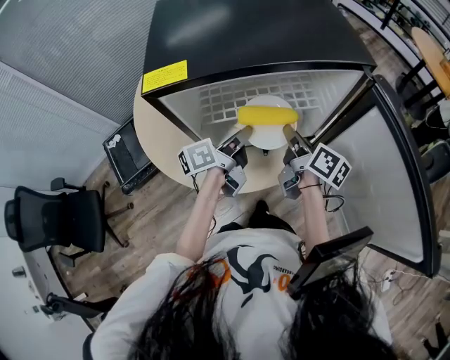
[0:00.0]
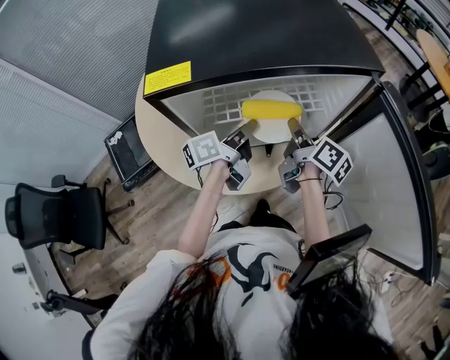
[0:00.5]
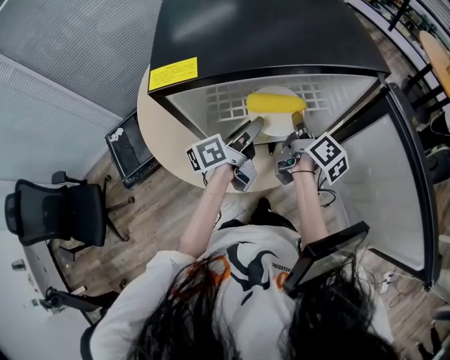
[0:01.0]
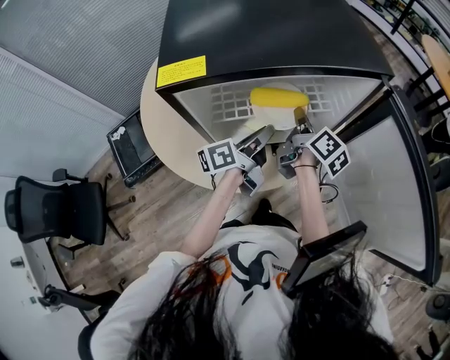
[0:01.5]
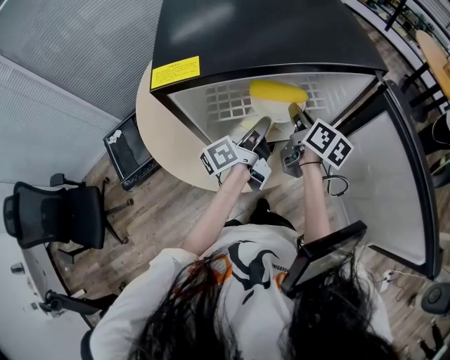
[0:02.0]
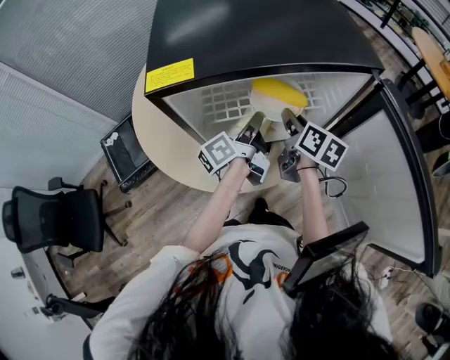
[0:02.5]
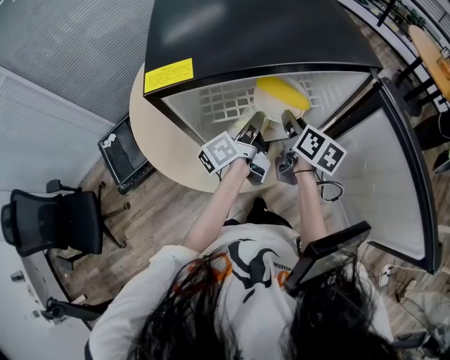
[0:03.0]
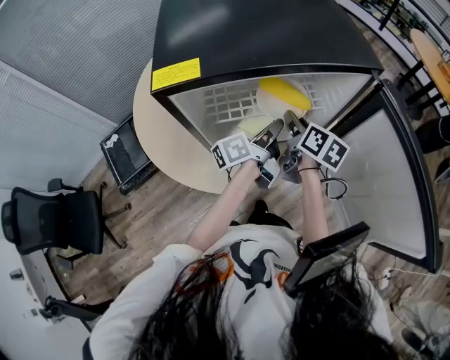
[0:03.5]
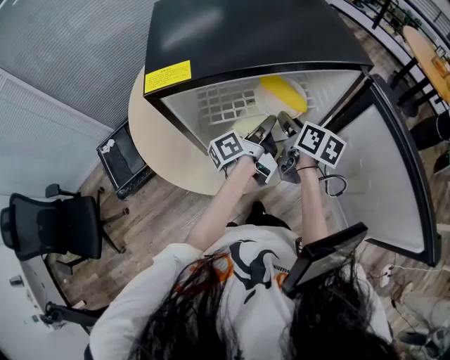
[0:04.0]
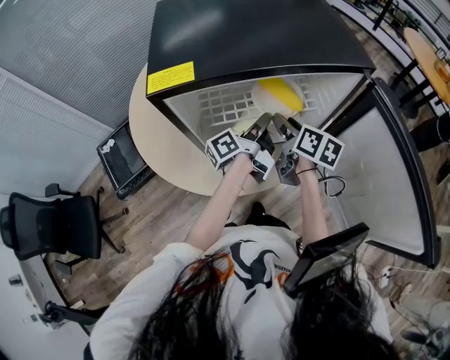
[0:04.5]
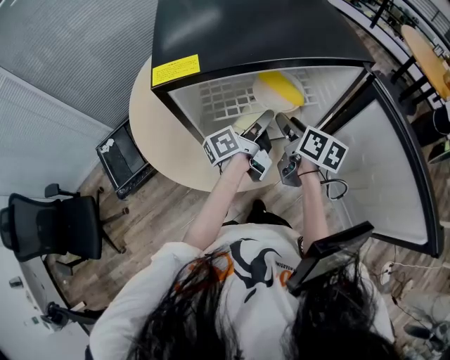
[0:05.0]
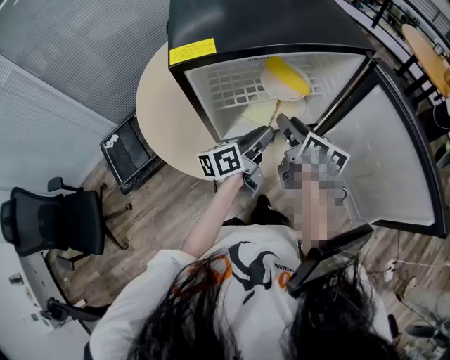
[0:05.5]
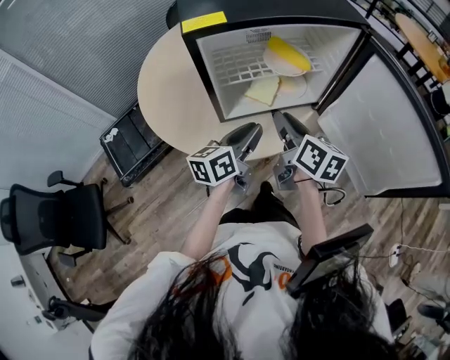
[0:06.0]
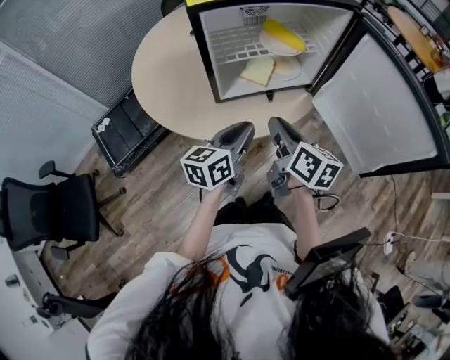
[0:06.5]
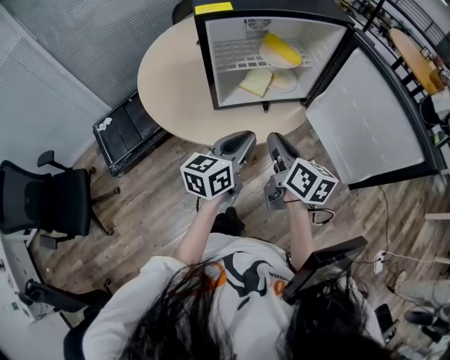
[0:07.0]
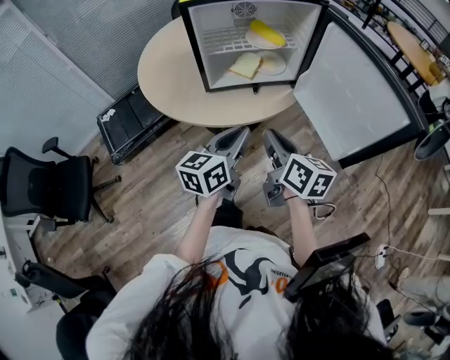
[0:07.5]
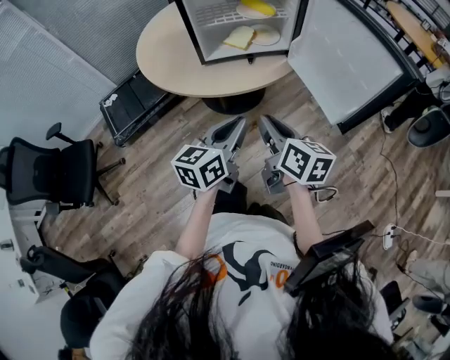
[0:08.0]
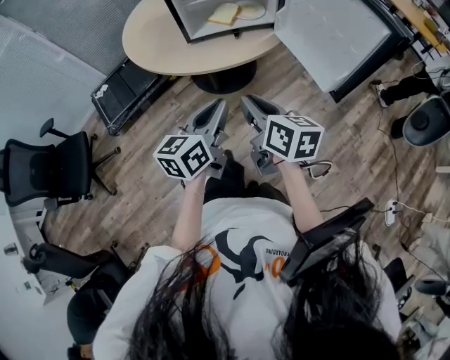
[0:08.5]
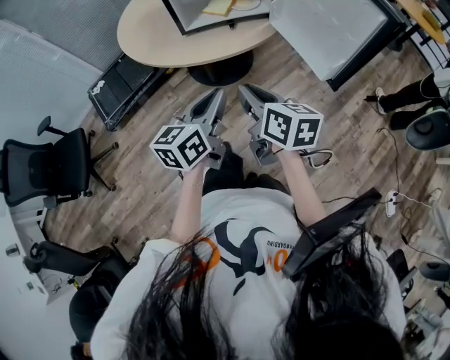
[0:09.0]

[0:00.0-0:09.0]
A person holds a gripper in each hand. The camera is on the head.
0:00.0 to 0:02.0: The left gripper opens, then closes again, while the right gripper goes about 5 cm forward.
0:02.0 to 0:04.5: The right gripper opens.
0:04.5 to 0:07.0: Both grippers travel together backward, about 25 cm. The left gripper rotates around the line of its fingers by roughly 50 degrees, clockwise from behind, while the right gripper closes.
0:07.0 to 0:09.0: Both grippers move backward, approximately 20 cm.

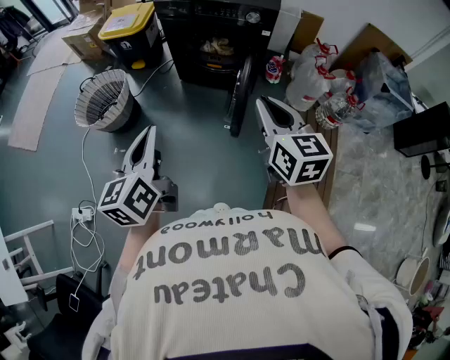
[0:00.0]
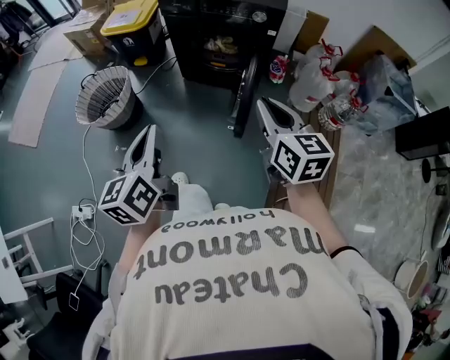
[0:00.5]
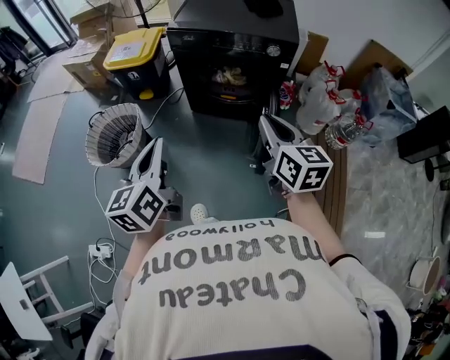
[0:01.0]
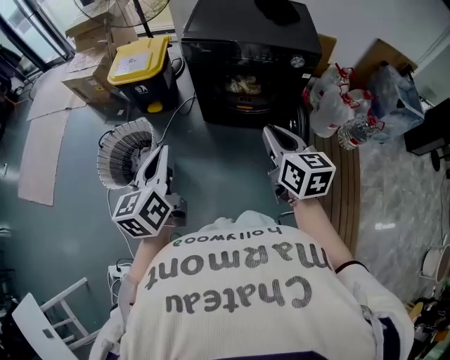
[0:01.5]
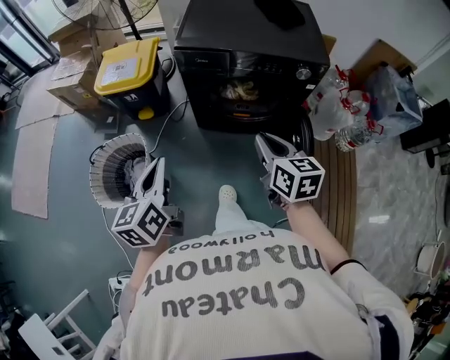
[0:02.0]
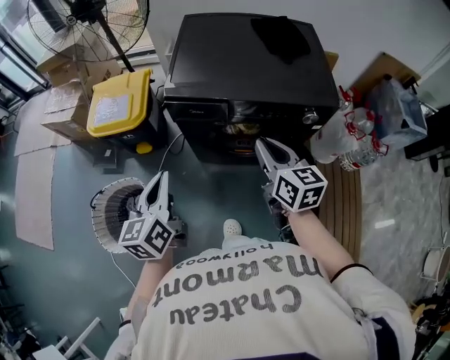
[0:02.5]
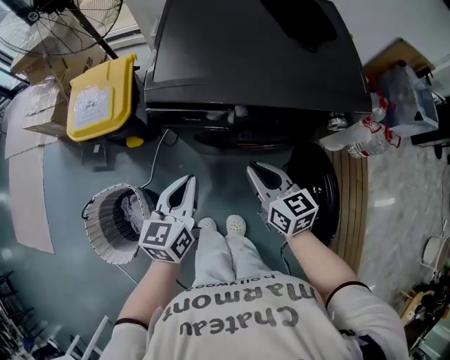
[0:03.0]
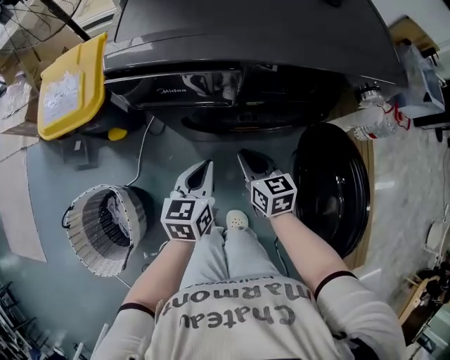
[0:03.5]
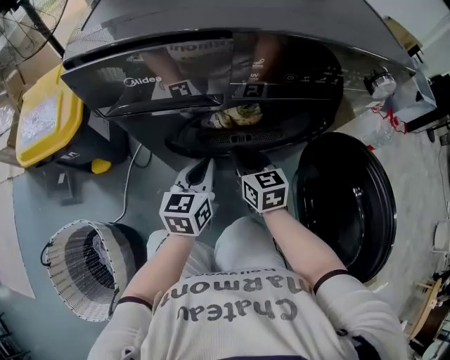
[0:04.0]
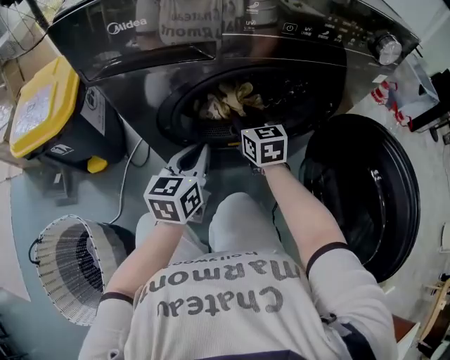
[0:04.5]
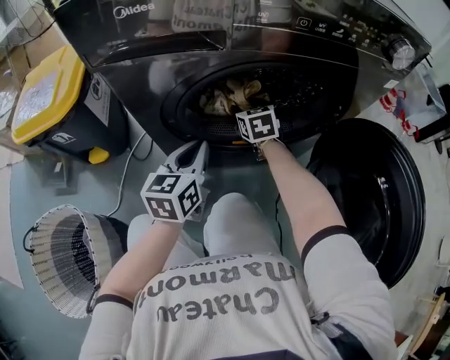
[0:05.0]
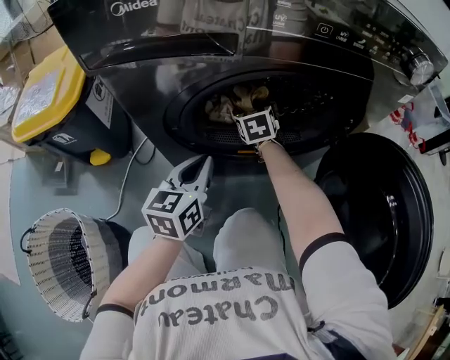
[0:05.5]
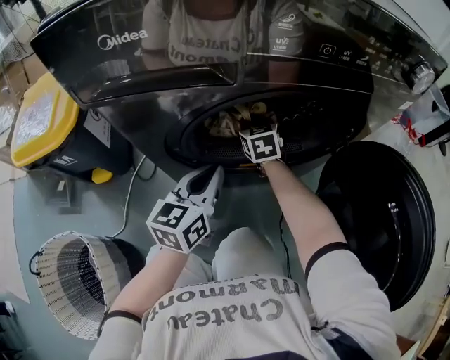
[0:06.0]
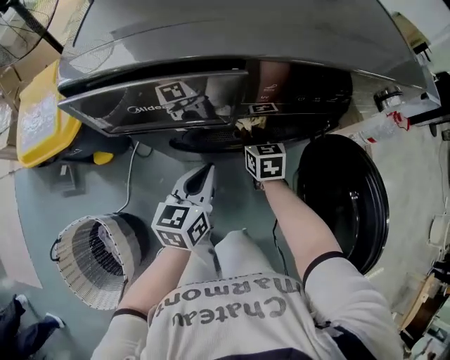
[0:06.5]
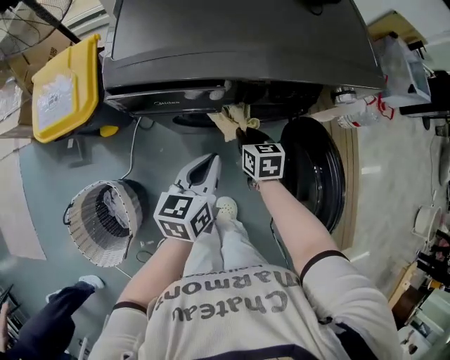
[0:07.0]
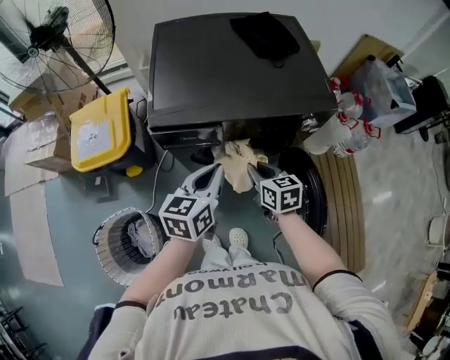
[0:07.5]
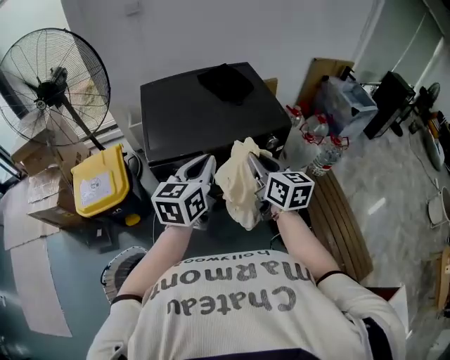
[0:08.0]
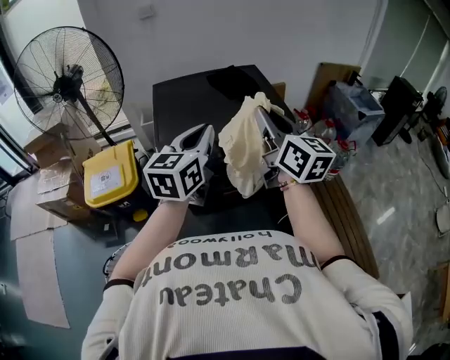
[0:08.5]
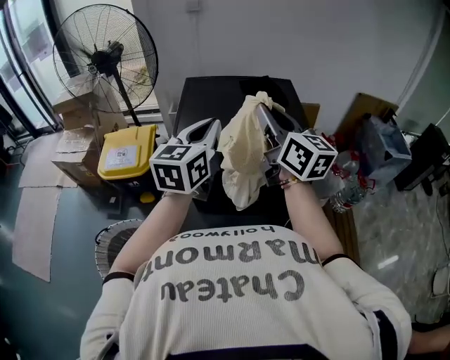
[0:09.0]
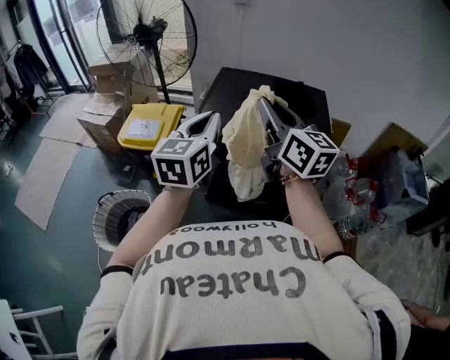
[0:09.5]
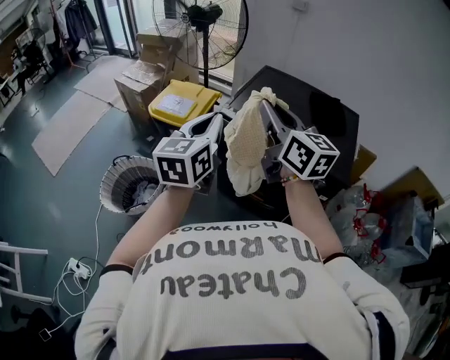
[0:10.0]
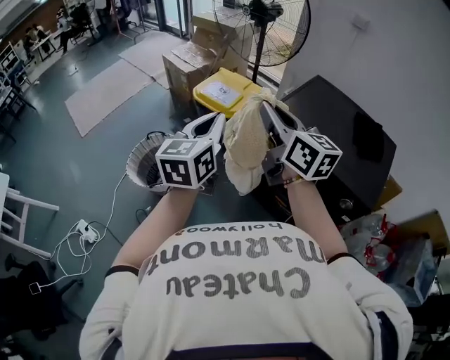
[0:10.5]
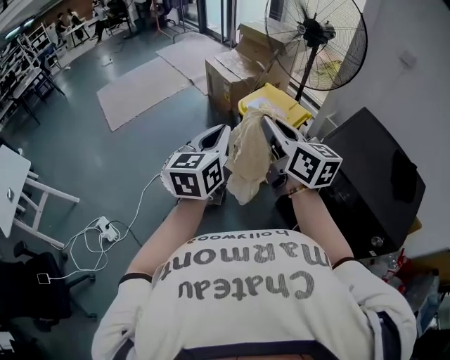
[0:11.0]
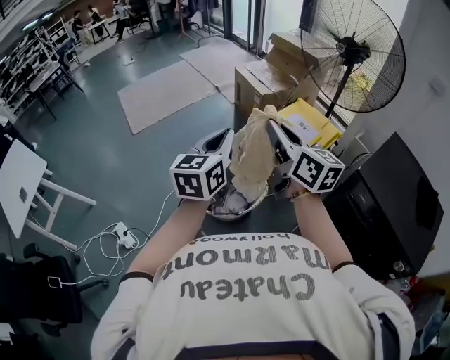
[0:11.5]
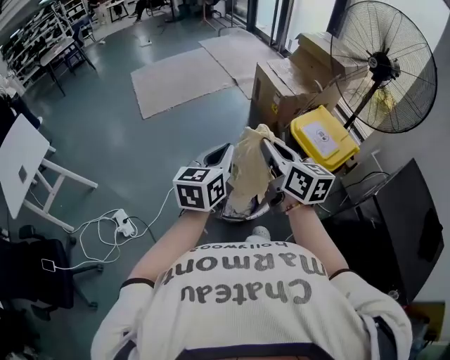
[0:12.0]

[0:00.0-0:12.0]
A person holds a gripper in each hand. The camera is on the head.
0:00.0 to 0:02.0: Both grippers move forward and to the left, some 40 cm.
0:02.0 to 0:04.0: The two grippers go about 50 cm downward and forward. The left gripper changes its angle by some 30 degrees.
0:04.0 to 0:06.0: The right gripper is displaced forward and downward by some 20 cm, and opens, then closes again.
0:06.0 to 0:08.0: The right gripper is displaced upward and backward by about 70 cm, and changes its angle by approximately 40 degrees, while the left gripper is displaced upward by about 50 cm.
0:08.0 to 0:10.0: The left gripper shifts by some 15 cm, and rotates roughly 50 degrees. The right gripper shifts about 15 cm upward, and swivels some 50 degrees.
0:10.0 to 0:12.0: The pair of grippers is taken some 60 cm. The right gripper turns by roughly 40 degrees; the left gripper changes its angle by some 40 degrees.

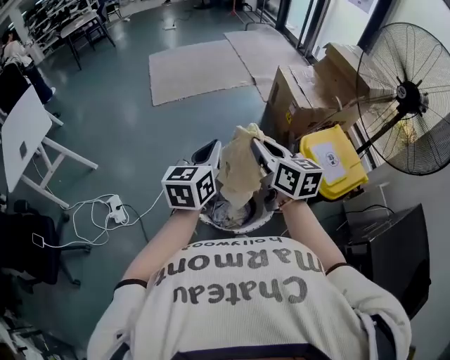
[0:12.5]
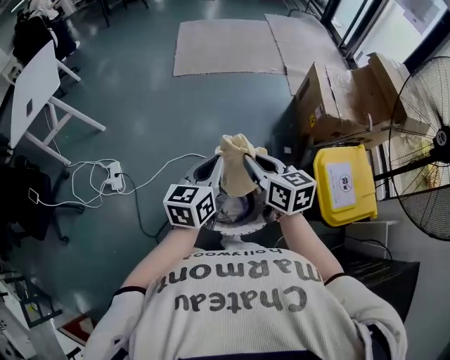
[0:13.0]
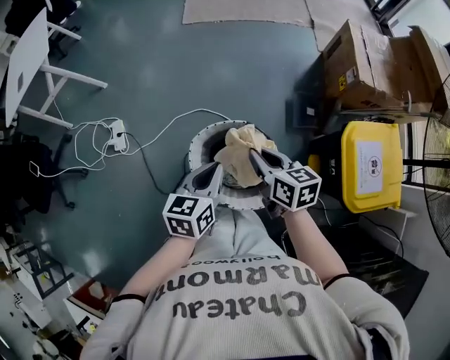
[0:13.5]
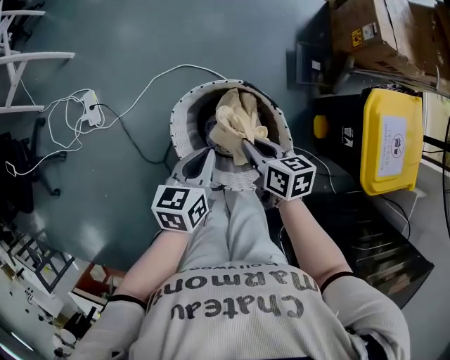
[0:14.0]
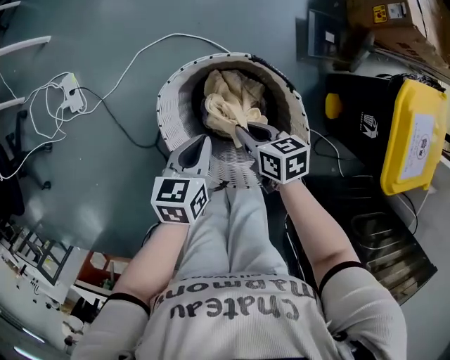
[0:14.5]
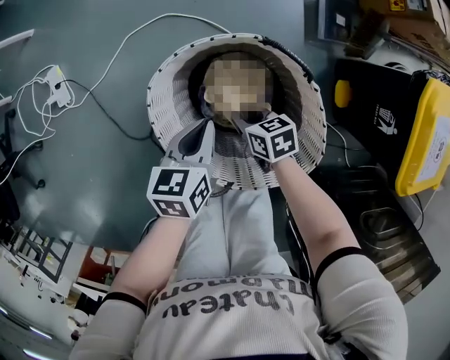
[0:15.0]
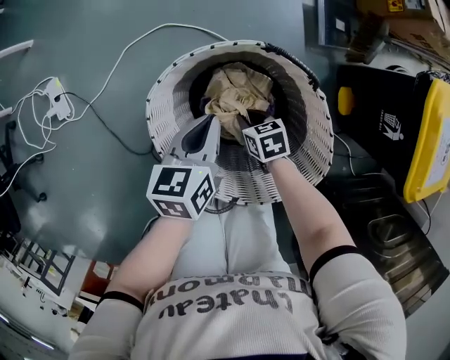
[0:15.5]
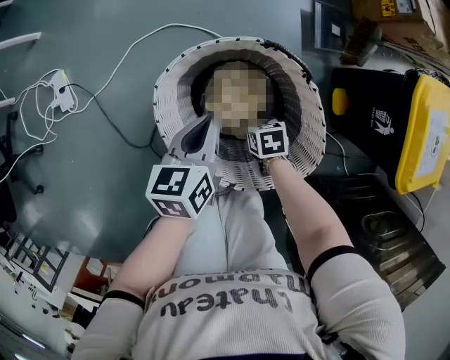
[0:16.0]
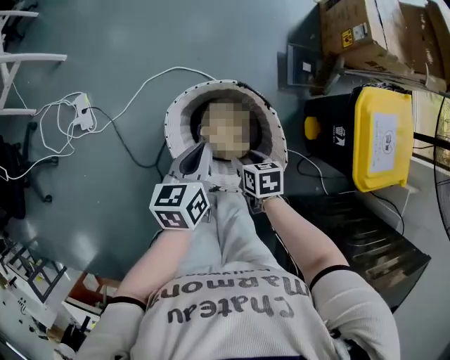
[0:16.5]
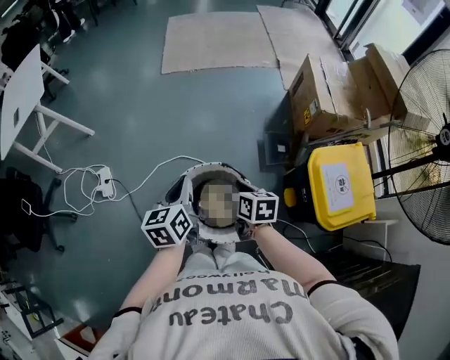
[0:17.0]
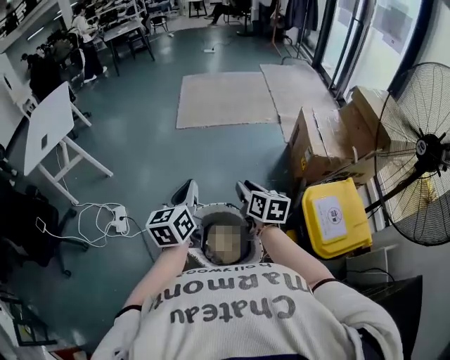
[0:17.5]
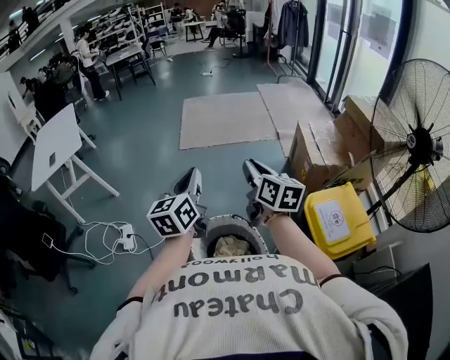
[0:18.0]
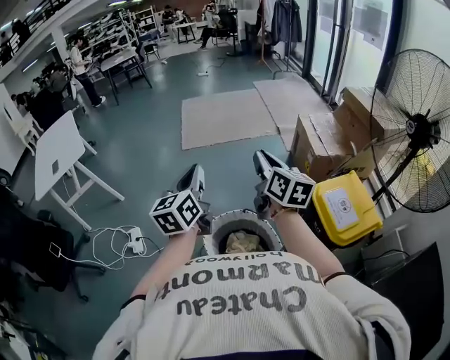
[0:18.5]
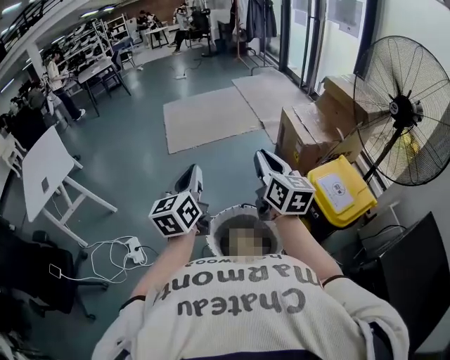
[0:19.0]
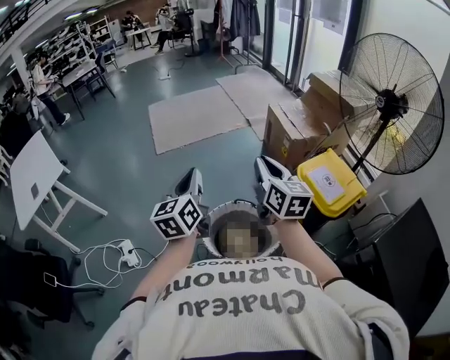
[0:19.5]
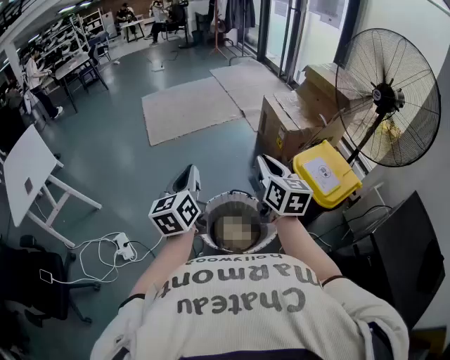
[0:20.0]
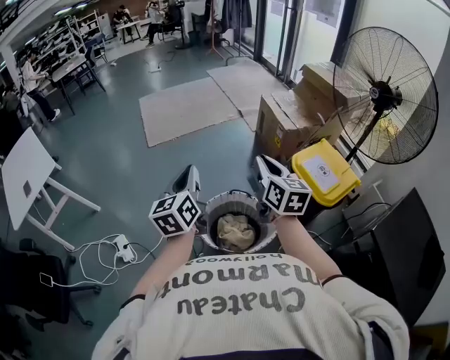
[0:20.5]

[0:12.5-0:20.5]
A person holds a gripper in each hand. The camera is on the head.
0:12.5 to 0:14.5: Both grippers move downward, about 50 cm. The right gripper tips its fingers downward by roughly 30 degrees. The left gripper tilts its fingers approximately 30 degrees downward.
0:14.5 to 0:16.5: The left gripper travels upward by approximately 10 cm; the right gripper shifts approximately 5 cm backward, reaches approximately 20 cm downward, then returns, and opens its fingers.
0:16.5 to 0:18.5: Both grippers travel together upward, about 50 cm. The left gripper tilts its fingers some 30 degrees upward; the right gripper tilts its fingers roughly 60 degrees upward, and closes up.
0:18.5 to 0:20.5: The right gripper travels backward by about 10 cm. Meanwhile the left gripper moves to the left, about 5 cm.
